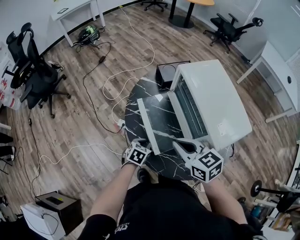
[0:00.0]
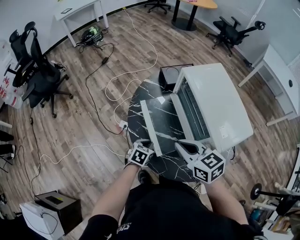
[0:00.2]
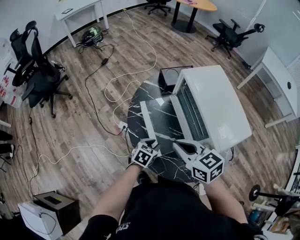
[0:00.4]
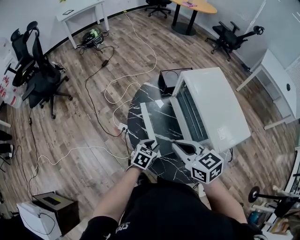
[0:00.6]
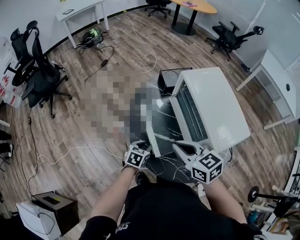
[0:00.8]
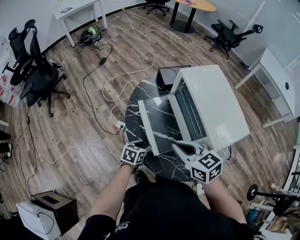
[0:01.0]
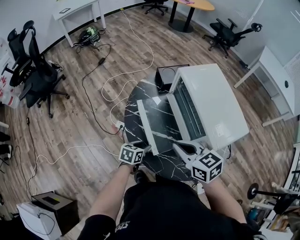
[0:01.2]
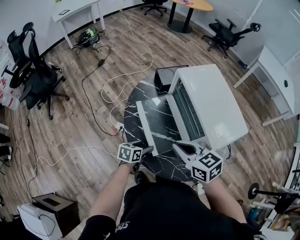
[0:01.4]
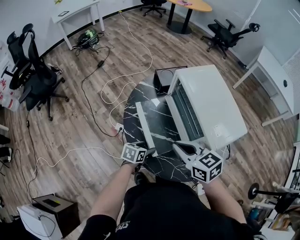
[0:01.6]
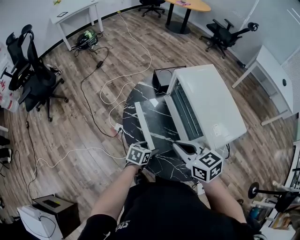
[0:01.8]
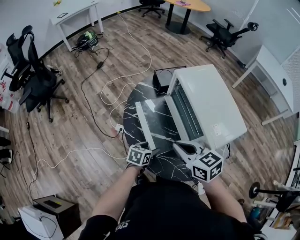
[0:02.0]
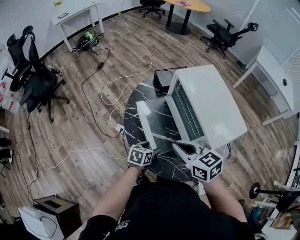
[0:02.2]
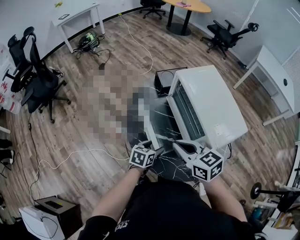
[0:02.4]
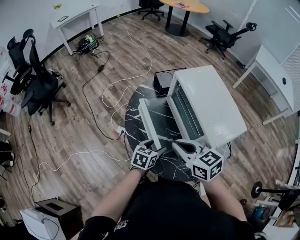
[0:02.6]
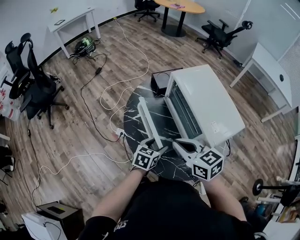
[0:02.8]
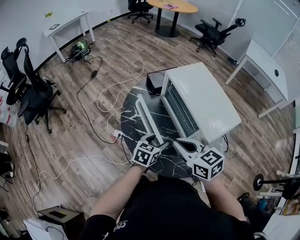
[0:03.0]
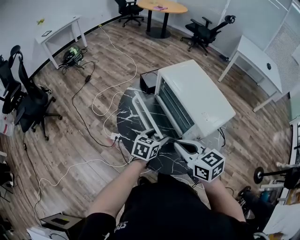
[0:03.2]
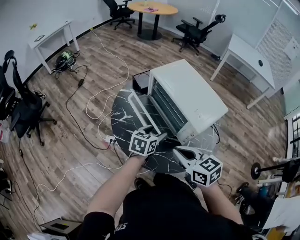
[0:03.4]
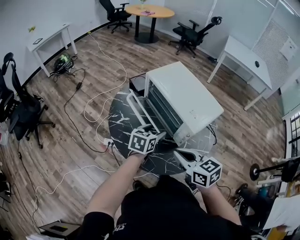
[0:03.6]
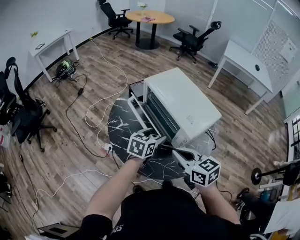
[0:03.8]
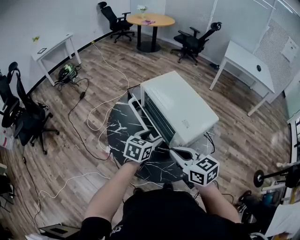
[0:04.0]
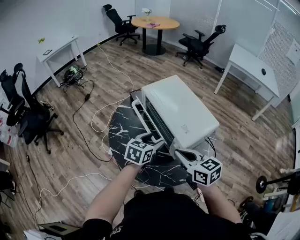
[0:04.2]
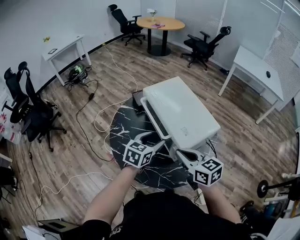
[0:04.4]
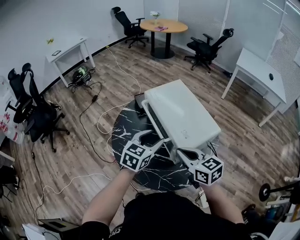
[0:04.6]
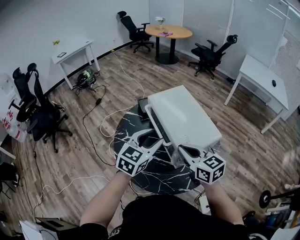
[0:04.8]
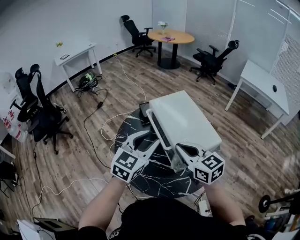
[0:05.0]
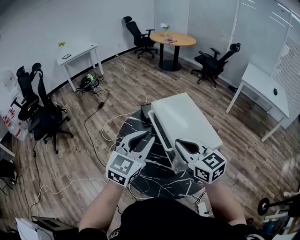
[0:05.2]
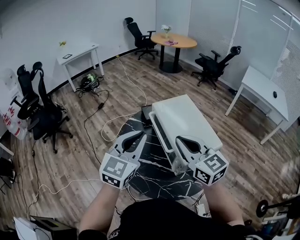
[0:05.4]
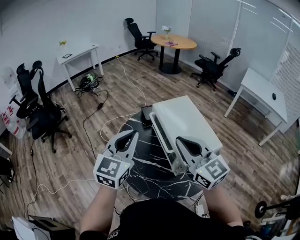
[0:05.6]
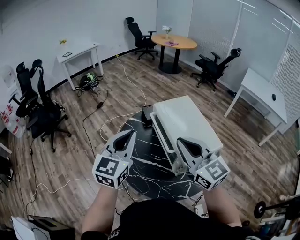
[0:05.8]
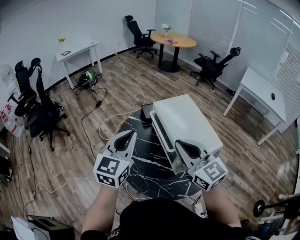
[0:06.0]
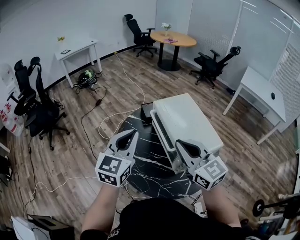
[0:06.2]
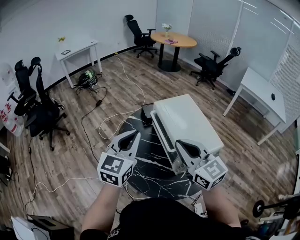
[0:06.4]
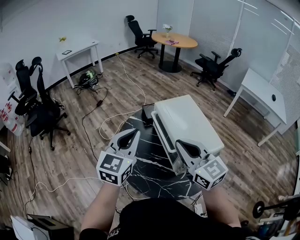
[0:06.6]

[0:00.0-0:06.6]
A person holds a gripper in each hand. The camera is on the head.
0:00.0 to 0:01.6: The left gripper opens.
0:01.6 to 0:03.2: The left gripper travels upward and to the right by some 15 cm, and changes its angle by roughly 20 degrees, while the right gripper moves approximately 5 cm.
0:03.2 to 0:05.0: The left gripper is displaced upward by approximately 25 cm, rotates approximately 30 degrees, and closes. The right gripper shifts about 15 cm to the right, upward and forward.
0:05.0 to 0:06.6: The right gripper heads upward, covering roughly 5 cm; the left gripper travels to the left by approximately 10 cm, and closes its fingers.

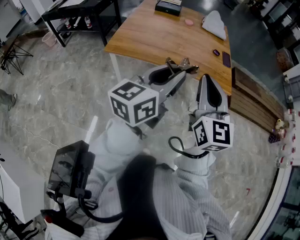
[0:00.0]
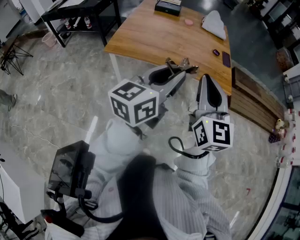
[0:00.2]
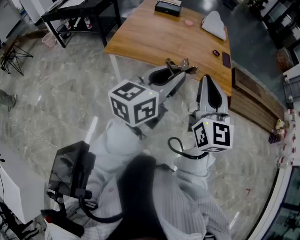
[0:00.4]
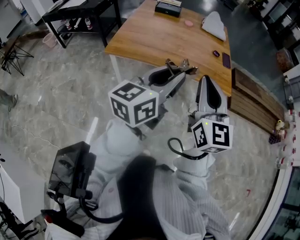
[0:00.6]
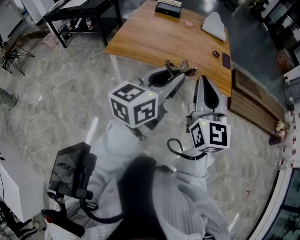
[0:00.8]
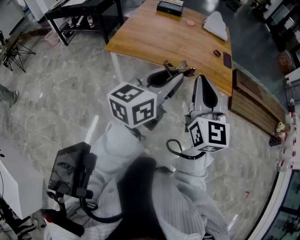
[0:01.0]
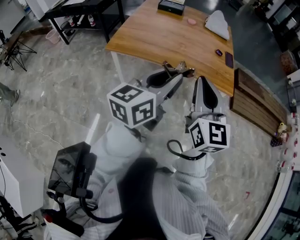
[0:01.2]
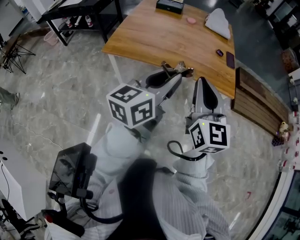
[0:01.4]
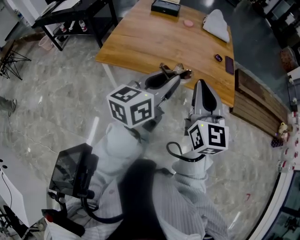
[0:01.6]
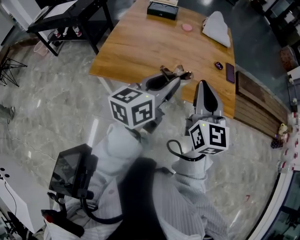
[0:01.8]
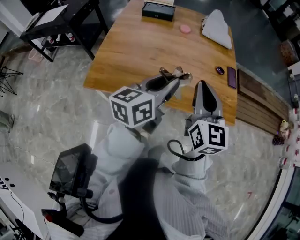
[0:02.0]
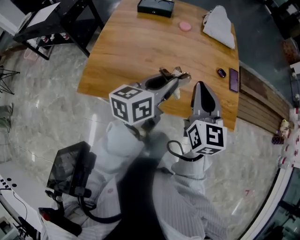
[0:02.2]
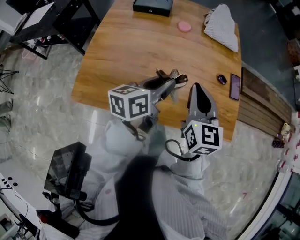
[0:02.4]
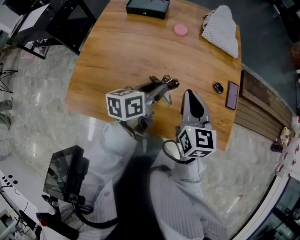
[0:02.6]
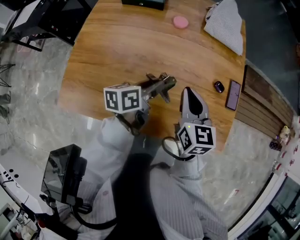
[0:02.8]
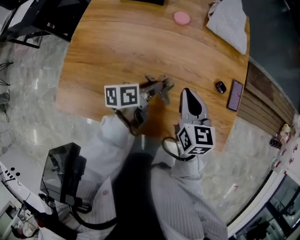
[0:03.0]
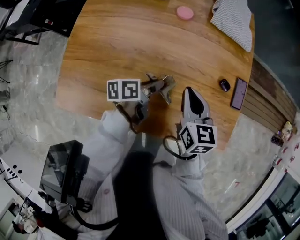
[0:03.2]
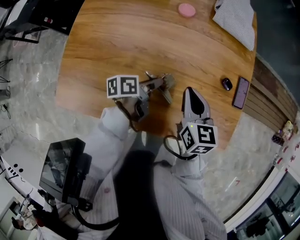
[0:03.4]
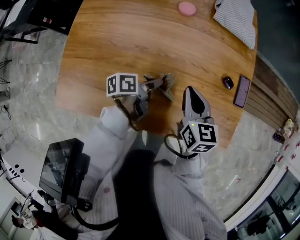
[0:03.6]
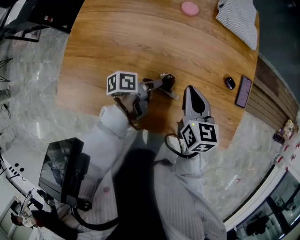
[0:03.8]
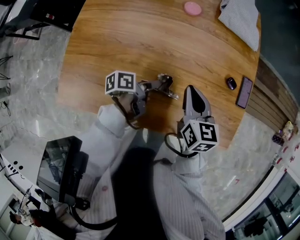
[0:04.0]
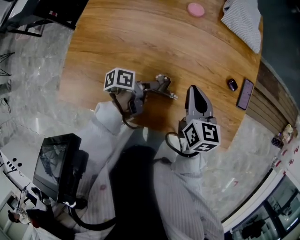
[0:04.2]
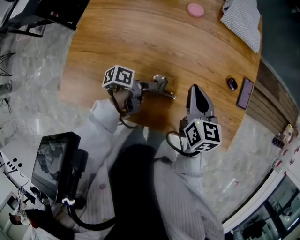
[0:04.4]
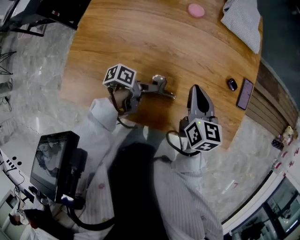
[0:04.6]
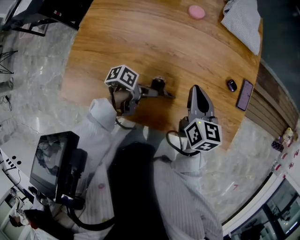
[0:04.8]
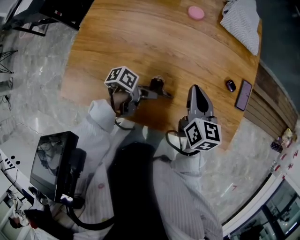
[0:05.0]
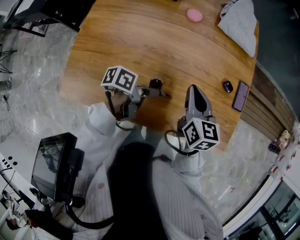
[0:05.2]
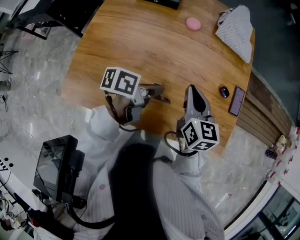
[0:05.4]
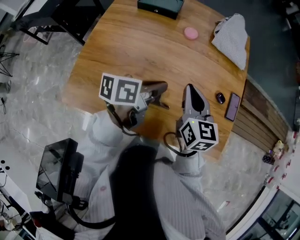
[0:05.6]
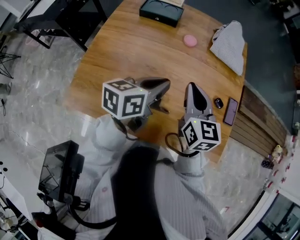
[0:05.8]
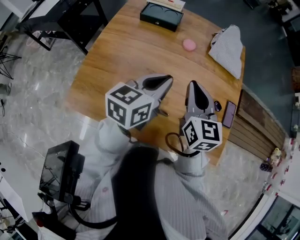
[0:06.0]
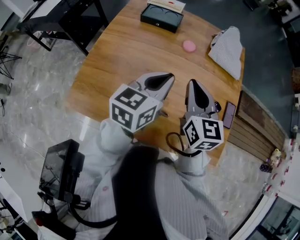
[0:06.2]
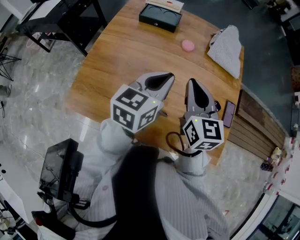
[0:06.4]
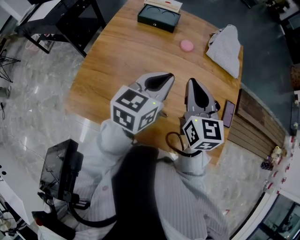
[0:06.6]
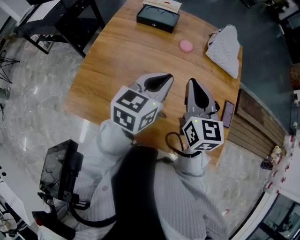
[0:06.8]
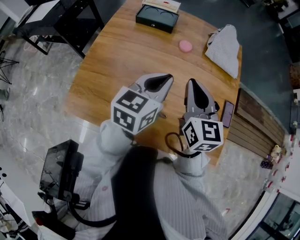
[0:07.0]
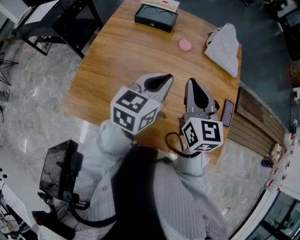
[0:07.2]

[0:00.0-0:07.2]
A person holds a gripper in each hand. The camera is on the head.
0:00.0 to 0:01.4: The grippers make only small movements.
0:01.4 to 0:02.8: The pair of grippers is taken forward, about 50 cm. The left gripper moves downward, approximately 25 cm, and swivels some 40 degrees. The right gripper changes its angle by some 30 degrees.
0:02.8 to 0:04.4: The right gripper heads downward, covering roughly 5 cm. The left gripper is displaced downward and backward by approximately 15 cm, turns by some 40 degrees, and opens.
0:04.4 to 0:05.8: The right gripper shifts about 15 cm upward and to the left. The left gripper heads upward, covering approximately 25 cm, twists roughly 50 degrees clockwise, seen from behind, and closes.
0:05.8 to 0:07.2: The left gripper rotates approximately 20 degrees.

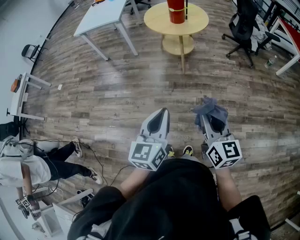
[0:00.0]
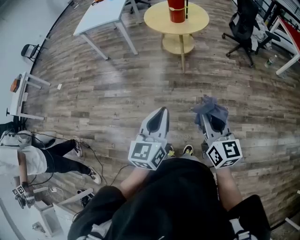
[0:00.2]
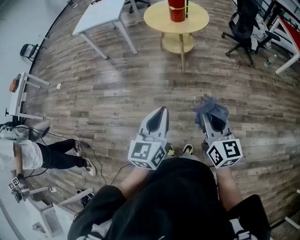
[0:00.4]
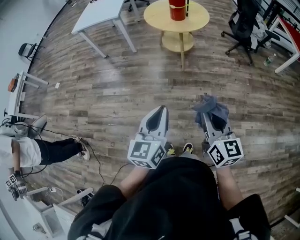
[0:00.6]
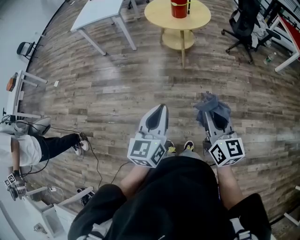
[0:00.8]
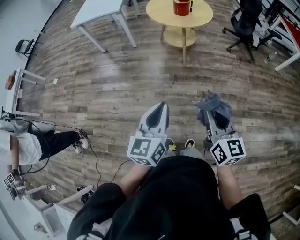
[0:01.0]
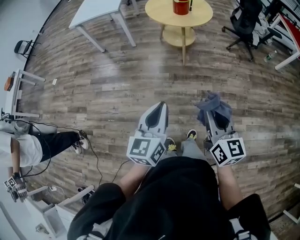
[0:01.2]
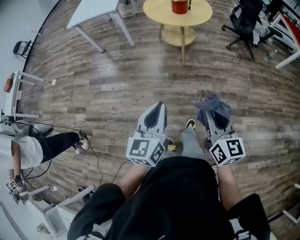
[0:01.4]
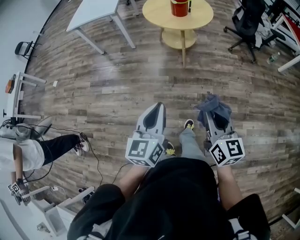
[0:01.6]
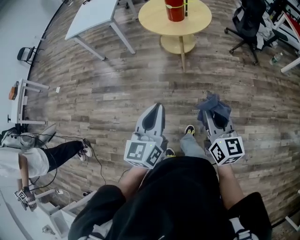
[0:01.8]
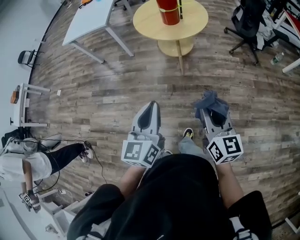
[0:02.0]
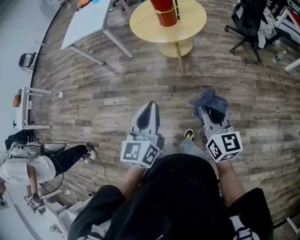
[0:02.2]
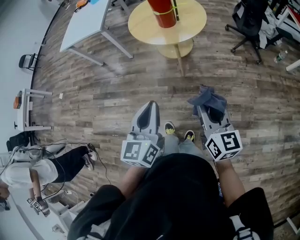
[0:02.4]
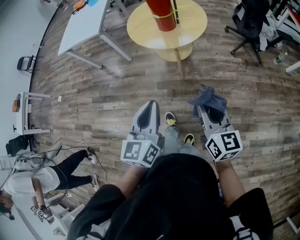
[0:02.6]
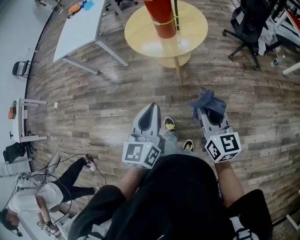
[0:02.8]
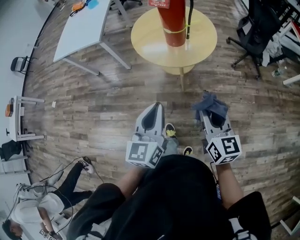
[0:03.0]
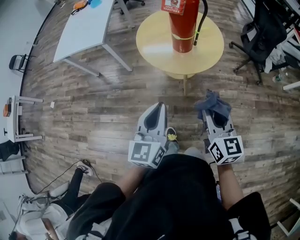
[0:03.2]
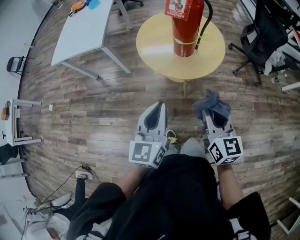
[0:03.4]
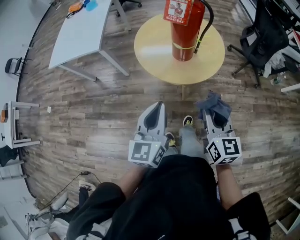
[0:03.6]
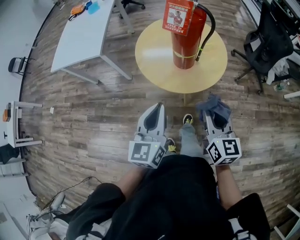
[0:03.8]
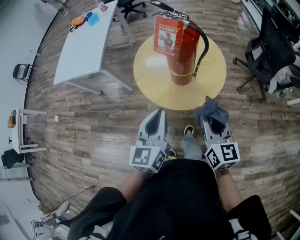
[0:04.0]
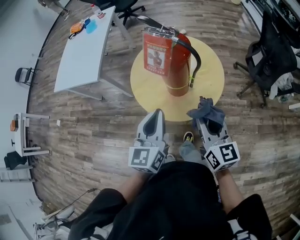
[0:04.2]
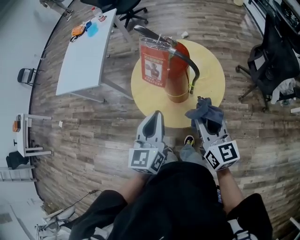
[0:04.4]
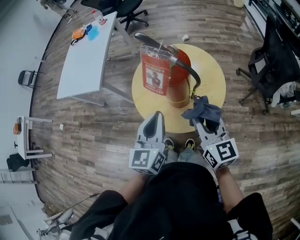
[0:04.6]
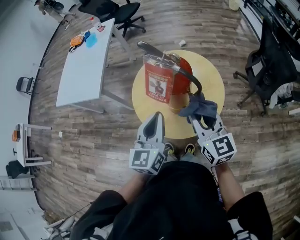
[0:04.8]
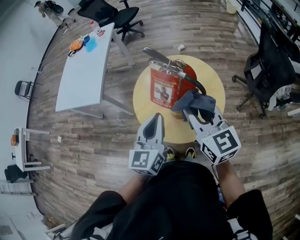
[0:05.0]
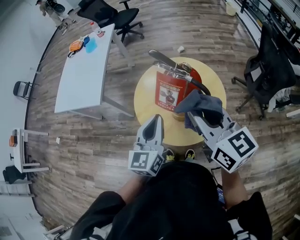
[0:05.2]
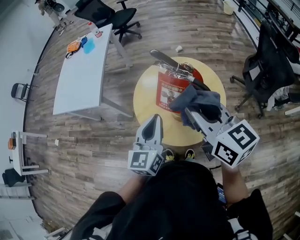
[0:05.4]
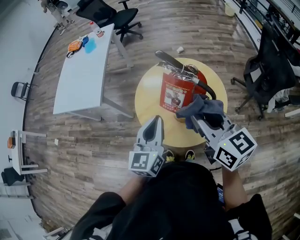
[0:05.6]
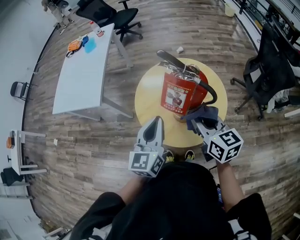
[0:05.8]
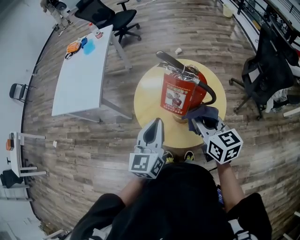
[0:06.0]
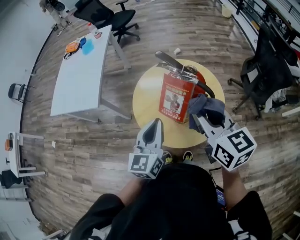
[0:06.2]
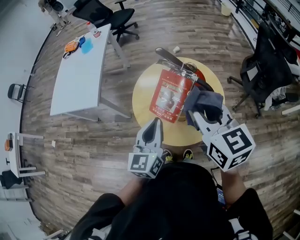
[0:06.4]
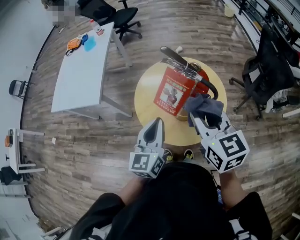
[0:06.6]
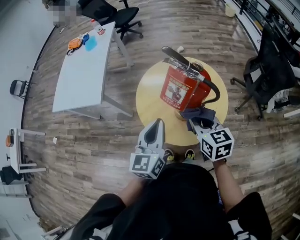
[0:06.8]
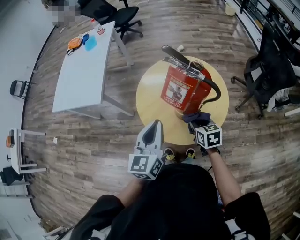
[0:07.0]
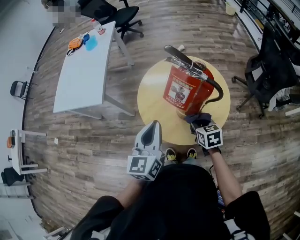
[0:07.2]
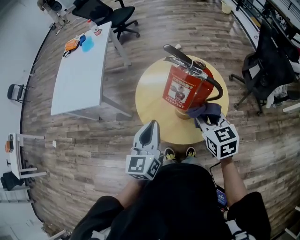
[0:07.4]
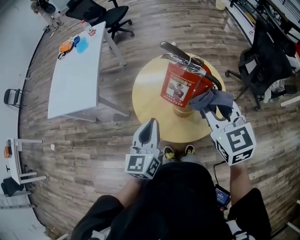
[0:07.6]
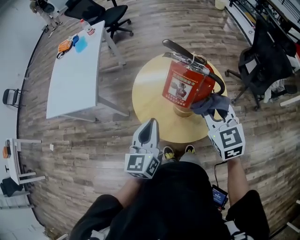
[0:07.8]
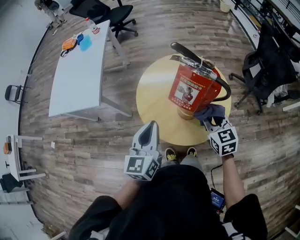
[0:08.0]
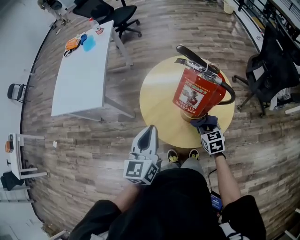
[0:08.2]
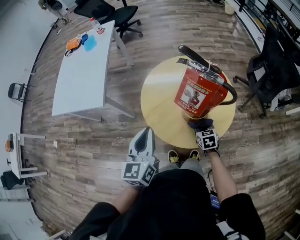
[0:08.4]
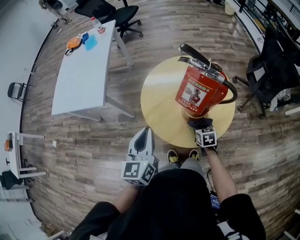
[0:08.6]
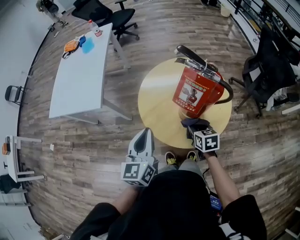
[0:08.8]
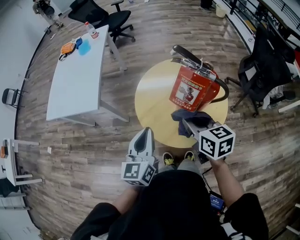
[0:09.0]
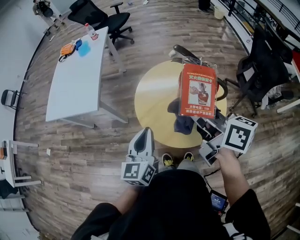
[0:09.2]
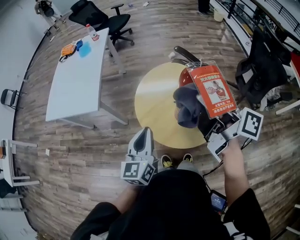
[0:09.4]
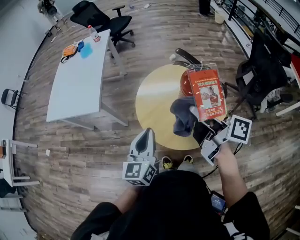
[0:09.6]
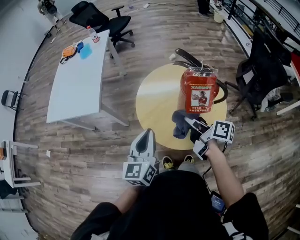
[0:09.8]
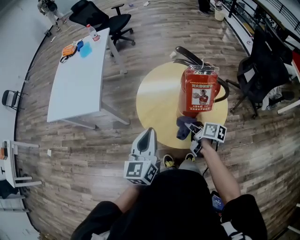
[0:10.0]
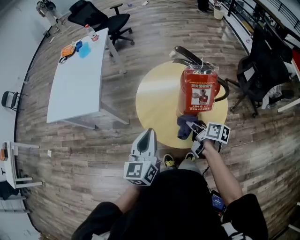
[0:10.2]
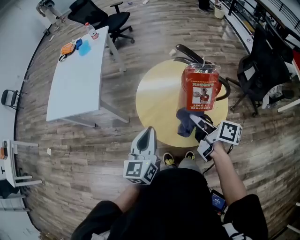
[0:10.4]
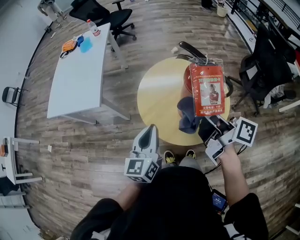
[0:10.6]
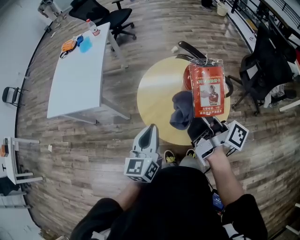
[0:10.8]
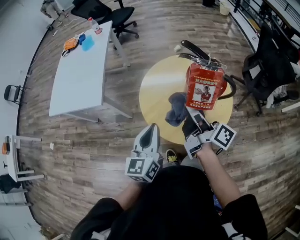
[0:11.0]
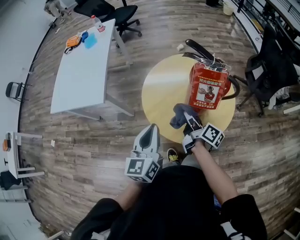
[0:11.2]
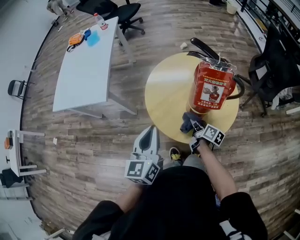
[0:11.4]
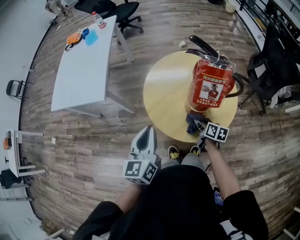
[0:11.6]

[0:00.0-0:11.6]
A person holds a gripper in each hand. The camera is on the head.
0:00.0 to 0:01.4: The right gripper shifts by approximately 5 cm. The left gripper is displaced to the left by approximately 5 cm.
0:01.4 to 0:02.8: Both grippers travel together forward, about 35 cm.
0:02.8 to 0:04.4: Both grippers move forward, some 40 cm.
0:04.4 to 0:05.8: Both grippers travel together forward and to the left, roughly 10 cm. The right gripper goes upward and returns, roughly 15 cm each way.
0:05.8 to 0:07.2: The right gripper heads downward, covering roughly 15 cm, and turns by about 20 degrees.
0:07.2 to 0:08.8: The right gripper swings up and down, about 35 cm each way, with 2 reversals, while the left gripper moves to the left, approximately 5 cm.
0:08.8 to 0:10.2: The right gripper goes upward and returns, about 30 cm each way, and rolls clockwise, seen from behind, by approximately 40 degrees.
0:10.2 to 0:11.6: The right gripper moves approximately 20 cm upward and comes back.
